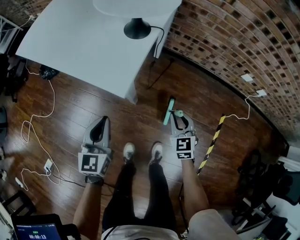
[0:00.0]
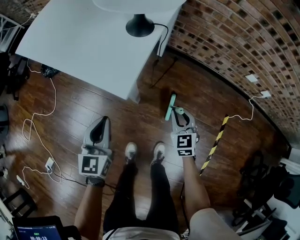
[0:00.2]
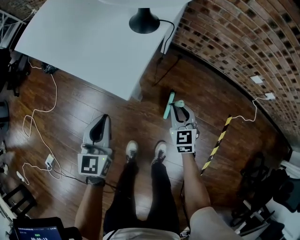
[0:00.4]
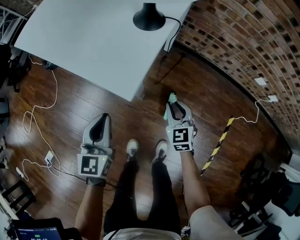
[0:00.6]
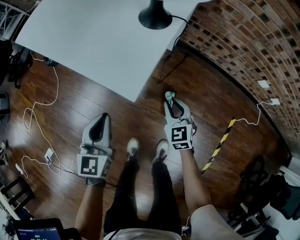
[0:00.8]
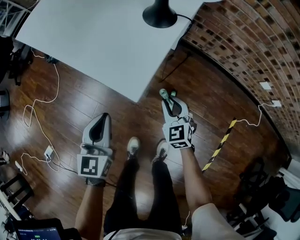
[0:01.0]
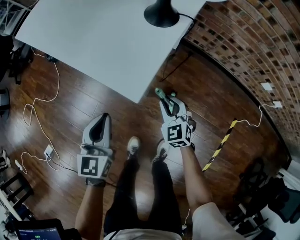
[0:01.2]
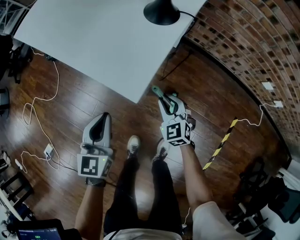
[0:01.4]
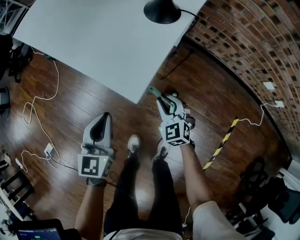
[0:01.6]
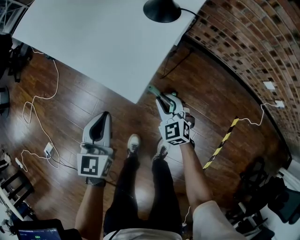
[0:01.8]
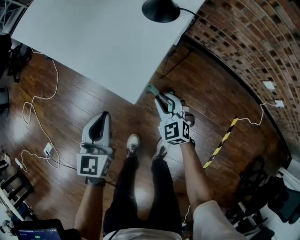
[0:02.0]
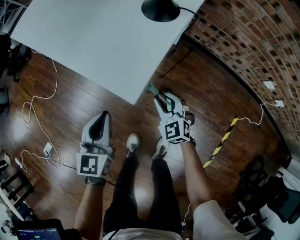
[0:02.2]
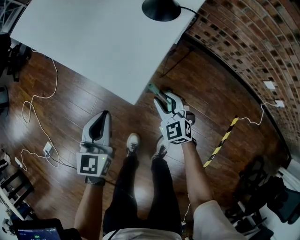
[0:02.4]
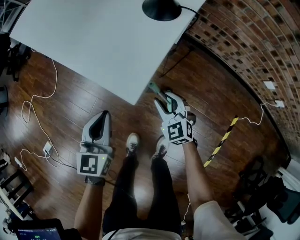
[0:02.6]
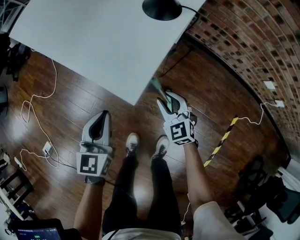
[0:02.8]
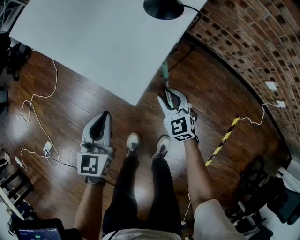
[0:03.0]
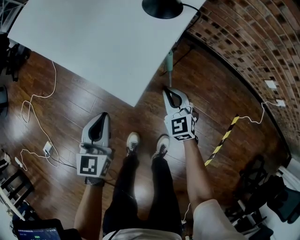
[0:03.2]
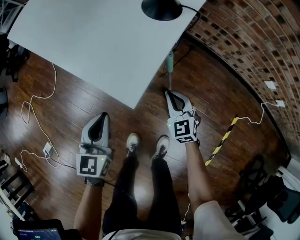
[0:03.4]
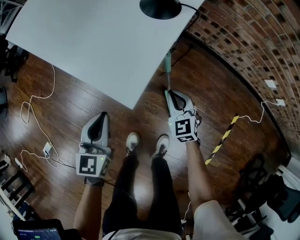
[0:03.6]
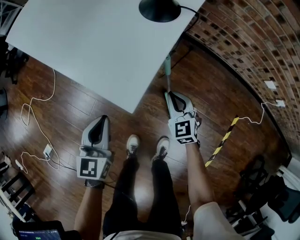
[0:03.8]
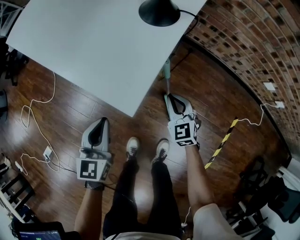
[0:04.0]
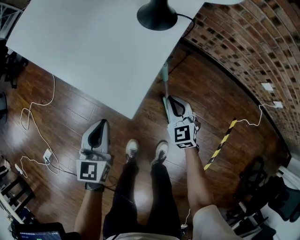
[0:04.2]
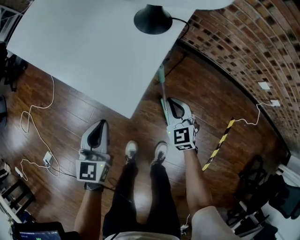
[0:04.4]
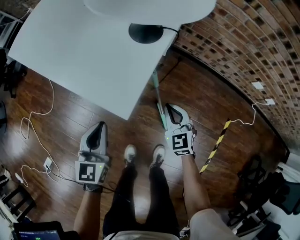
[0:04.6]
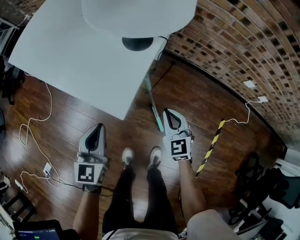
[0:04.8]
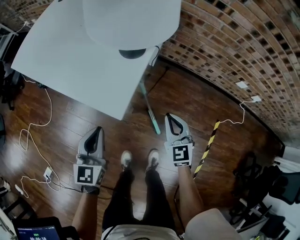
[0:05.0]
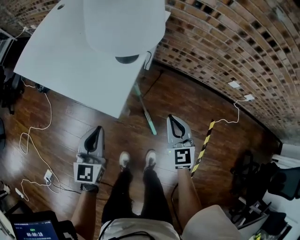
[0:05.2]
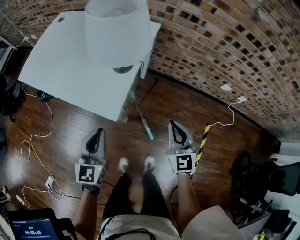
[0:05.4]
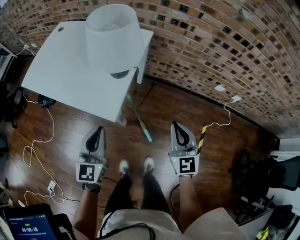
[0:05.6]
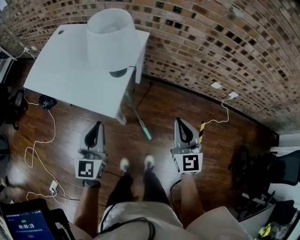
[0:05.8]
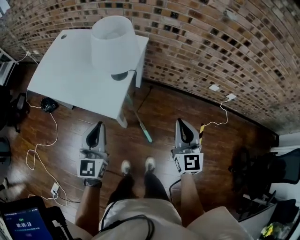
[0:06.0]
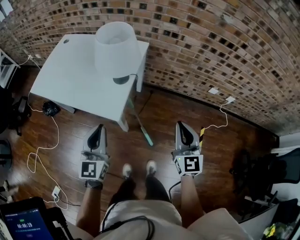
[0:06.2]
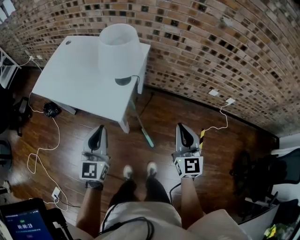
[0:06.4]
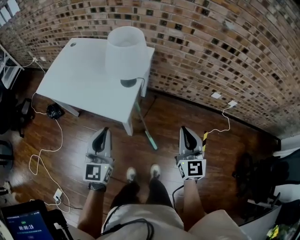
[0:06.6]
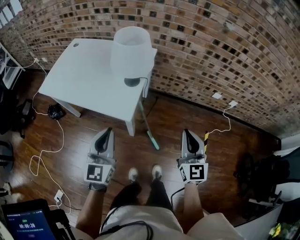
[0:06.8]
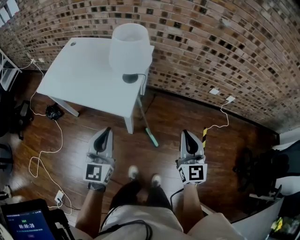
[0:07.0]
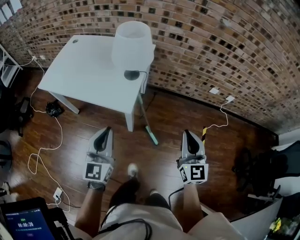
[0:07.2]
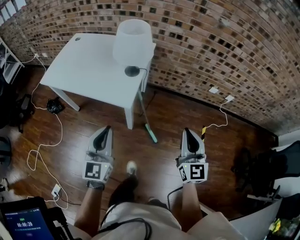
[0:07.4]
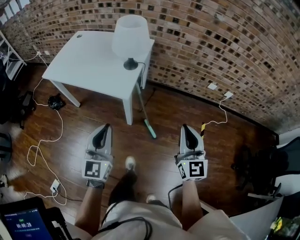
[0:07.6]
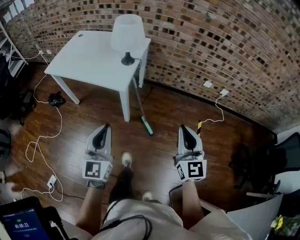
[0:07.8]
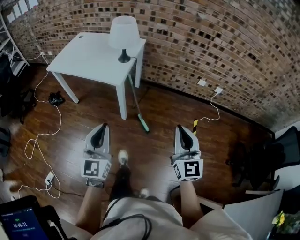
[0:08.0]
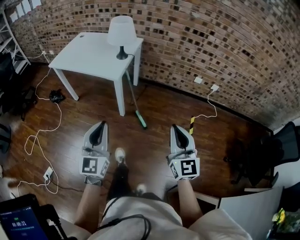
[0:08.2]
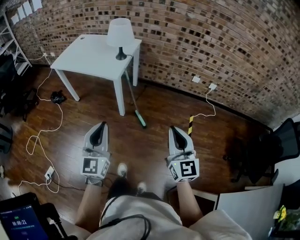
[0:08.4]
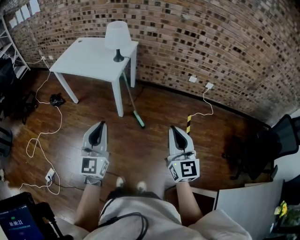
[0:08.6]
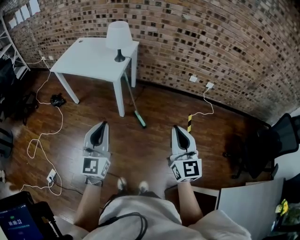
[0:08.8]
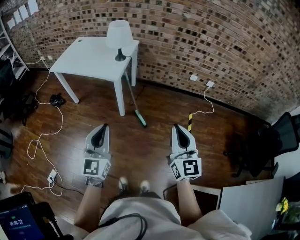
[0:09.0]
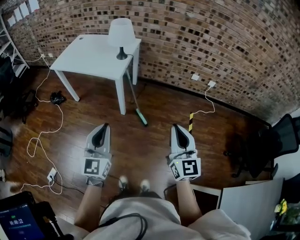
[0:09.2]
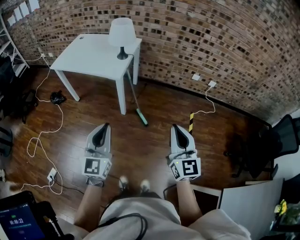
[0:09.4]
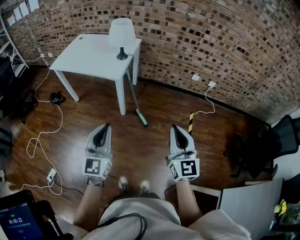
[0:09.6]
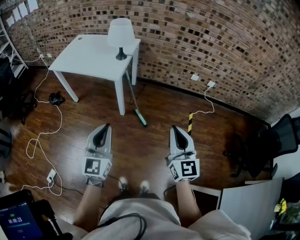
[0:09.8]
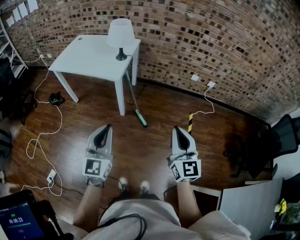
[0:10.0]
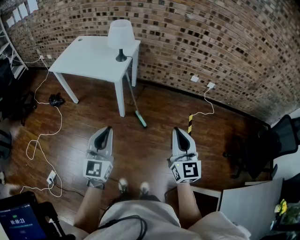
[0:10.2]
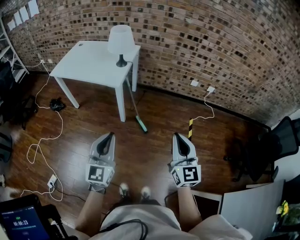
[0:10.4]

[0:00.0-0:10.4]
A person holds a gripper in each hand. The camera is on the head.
0:00.0 to 0:01.4: The left gripper changes place by approximately 5 cm, while the right gripper goes approximately 15 cm to the left, downward and forward, and swivels roughly 20 degrees.
0:01.4 to 0:03.0: The grippers stay close to where they were, moving slightly.
0:03.0 to 0:04.4: The right gripper changes place by some 5 cm, and closes its fingers.
0:04.4 to 0:06.0: The grippers both shift upward by roughly 35 cm. The left gripper swivels about 20 degrees, while the right gripper turns by approximately 30 degrees.
0:06.0 to 0:07.4: Both grippers travel together backward, about 10 cm.
0:07.4 to 0:09.0: Both grippers travel together backward, roughly 30 cm.
0:09.0 to 0:10.4: The grippers stay close to where they were, moving slightly.

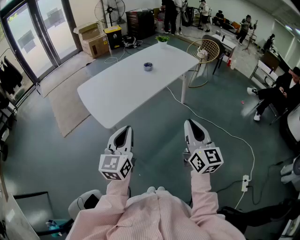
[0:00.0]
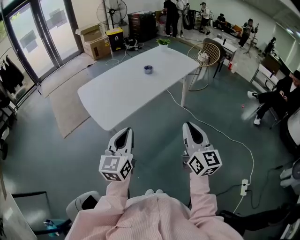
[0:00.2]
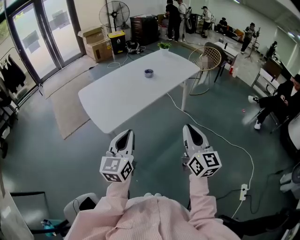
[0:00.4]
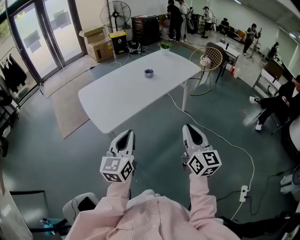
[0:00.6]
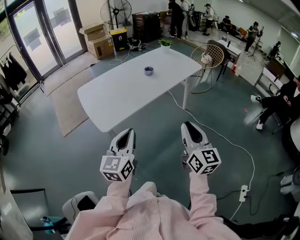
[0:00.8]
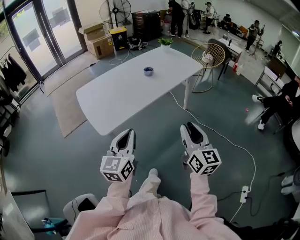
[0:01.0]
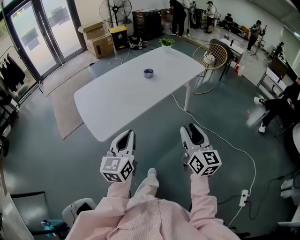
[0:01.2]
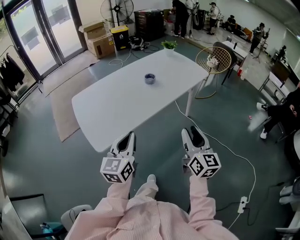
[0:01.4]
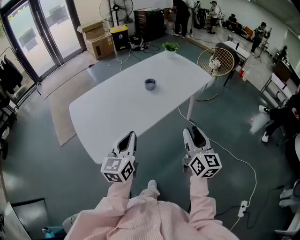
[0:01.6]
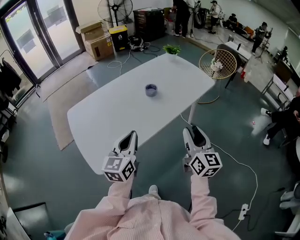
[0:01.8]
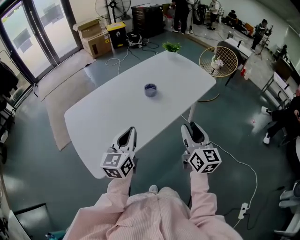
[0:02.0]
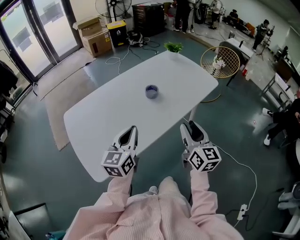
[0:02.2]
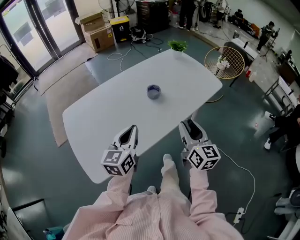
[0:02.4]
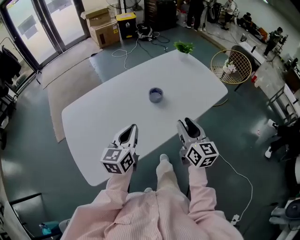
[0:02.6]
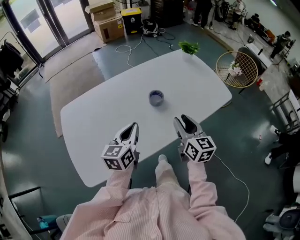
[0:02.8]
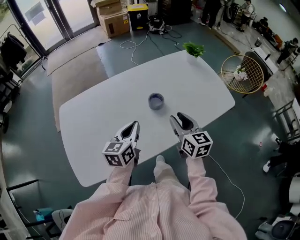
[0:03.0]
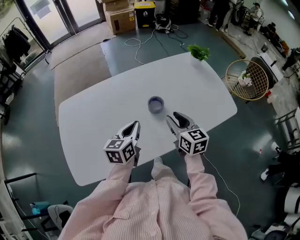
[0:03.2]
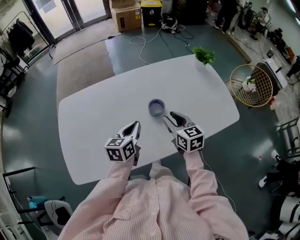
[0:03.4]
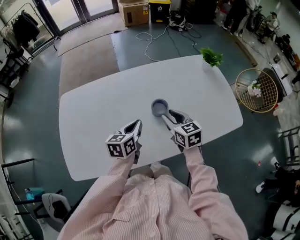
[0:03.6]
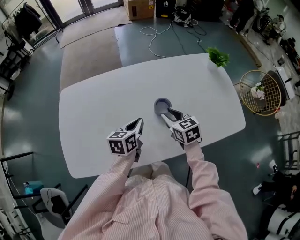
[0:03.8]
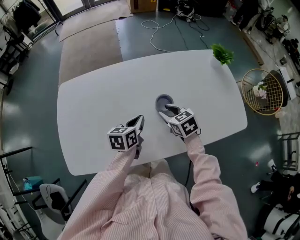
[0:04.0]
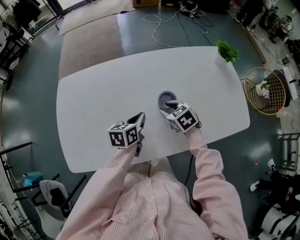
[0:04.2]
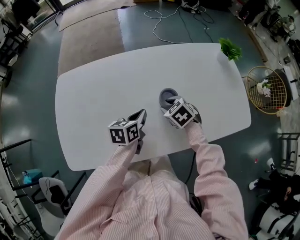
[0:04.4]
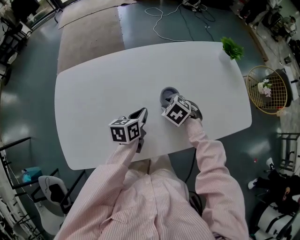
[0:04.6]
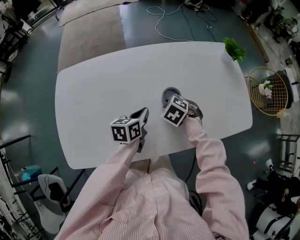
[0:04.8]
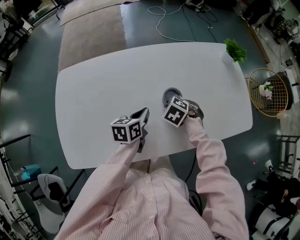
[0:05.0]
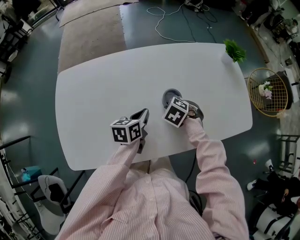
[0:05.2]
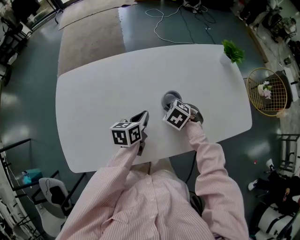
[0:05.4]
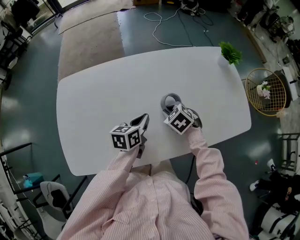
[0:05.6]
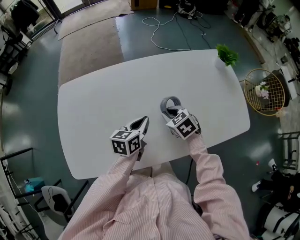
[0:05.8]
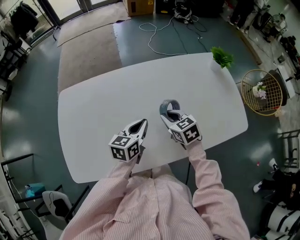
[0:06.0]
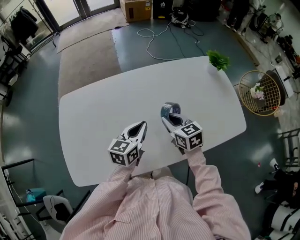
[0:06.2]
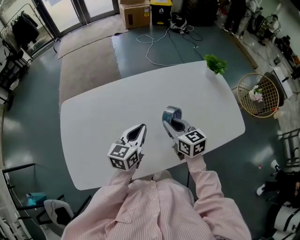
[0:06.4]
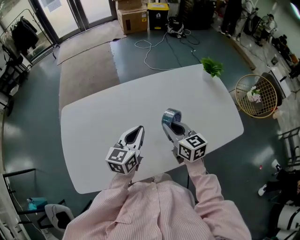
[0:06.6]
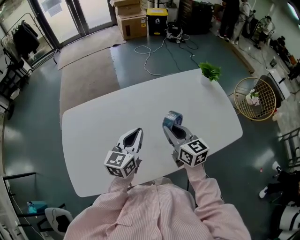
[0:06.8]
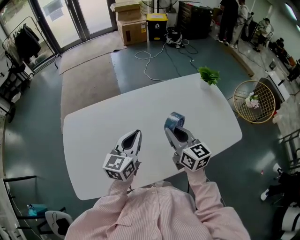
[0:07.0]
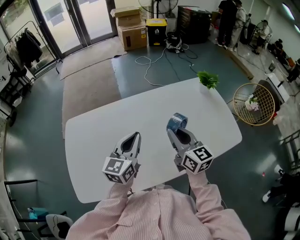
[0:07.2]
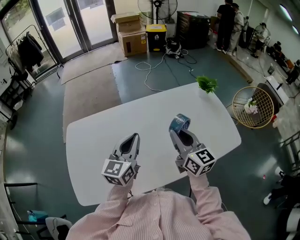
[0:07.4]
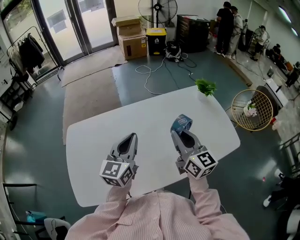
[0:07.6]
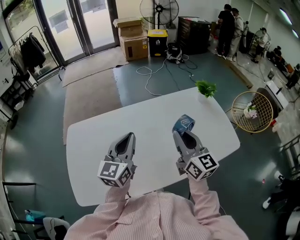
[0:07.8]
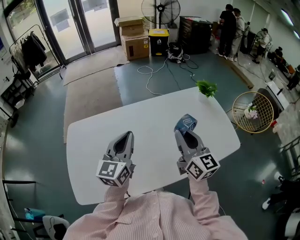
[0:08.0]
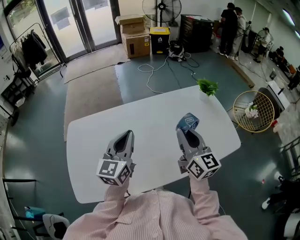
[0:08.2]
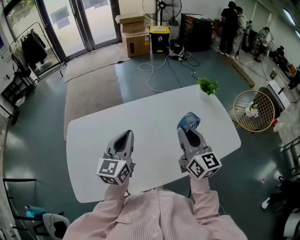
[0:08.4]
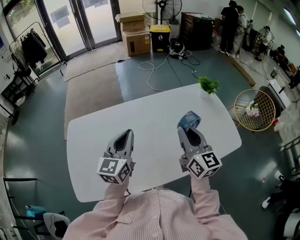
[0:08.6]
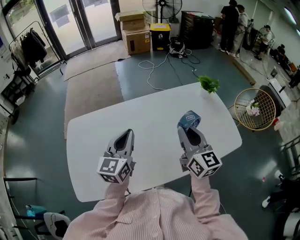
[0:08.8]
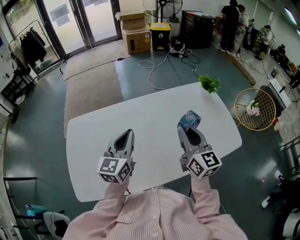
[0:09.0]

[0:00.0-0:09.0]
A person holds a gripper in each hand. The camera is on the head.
0:00.0 to 0:01.6: The grippers both shift forward by roughly 25 cm. The right gripper opens its fingers.
0:01.6 to 0:03.0: The two grippers go approximately 35 cm forward. The right gripper rotates some 30 degrees.
0:03.0 to 0:04.4: The right gripper goes some 20 cm downward, forward and to the left, and tilts its fingers some 50 degrees downward, while the left gripper moves downward and forward, some 15 cm, and swivels about 20 degrees.
0:04.4 to 0:06.0: The two grippers go approximately 5 cm upward. The right gripper changes its angle by about 30 degrees.
0:06.0 to 0:07.6: The grippers both shift upward by roughly 20 cm. The right gripper tips its fingers upward by about 40 degrees. The left gripper turns by about 30 degrees.
0:07.6 to 0:09.0: There are only small adjustments of the grippers.

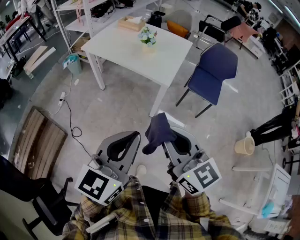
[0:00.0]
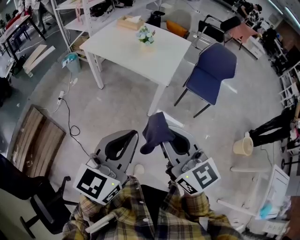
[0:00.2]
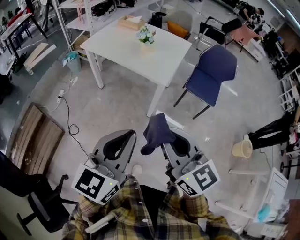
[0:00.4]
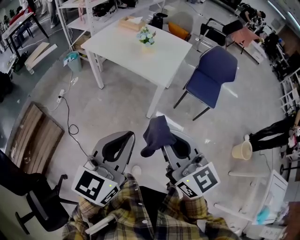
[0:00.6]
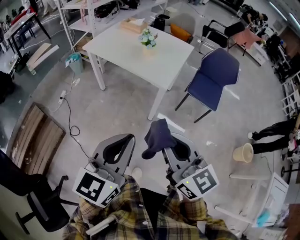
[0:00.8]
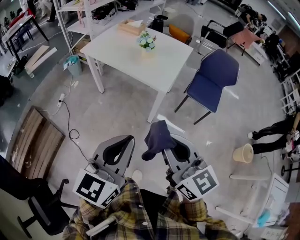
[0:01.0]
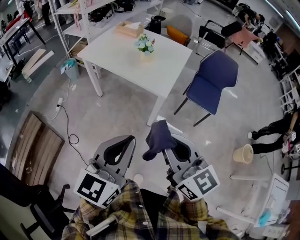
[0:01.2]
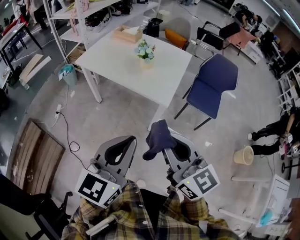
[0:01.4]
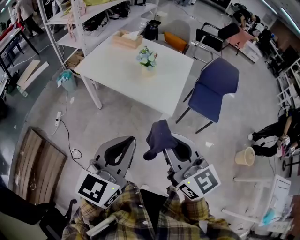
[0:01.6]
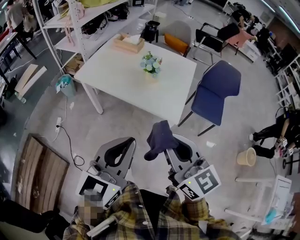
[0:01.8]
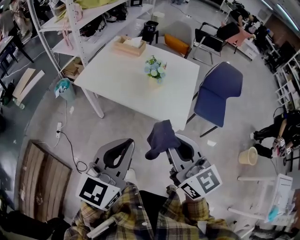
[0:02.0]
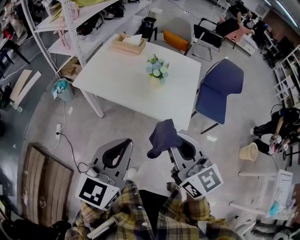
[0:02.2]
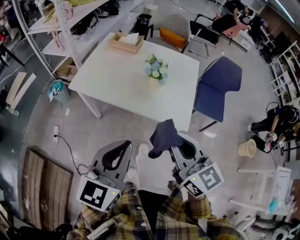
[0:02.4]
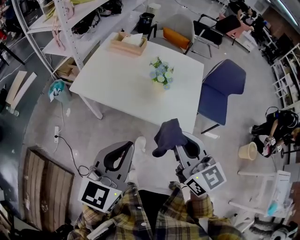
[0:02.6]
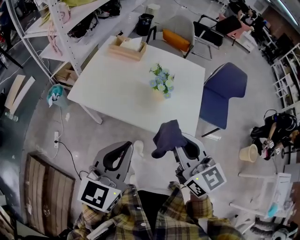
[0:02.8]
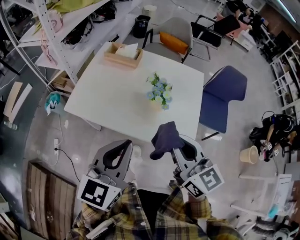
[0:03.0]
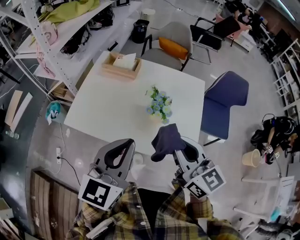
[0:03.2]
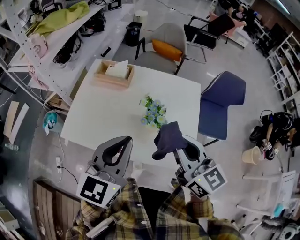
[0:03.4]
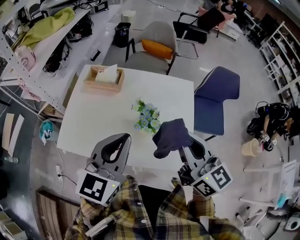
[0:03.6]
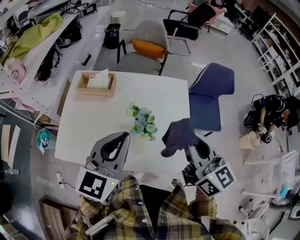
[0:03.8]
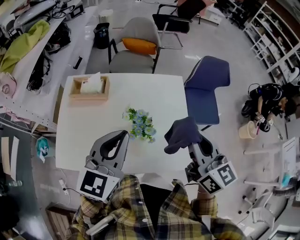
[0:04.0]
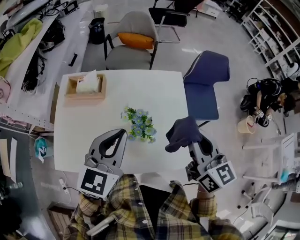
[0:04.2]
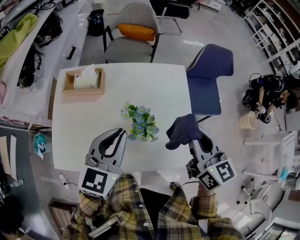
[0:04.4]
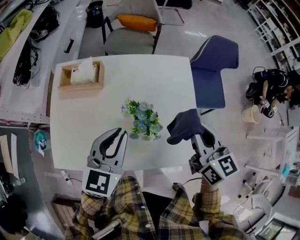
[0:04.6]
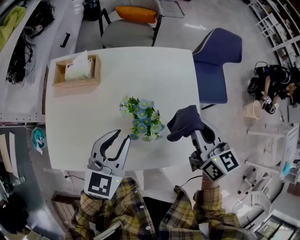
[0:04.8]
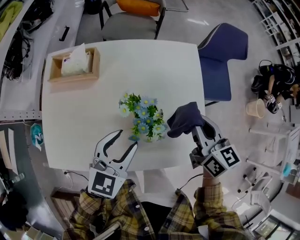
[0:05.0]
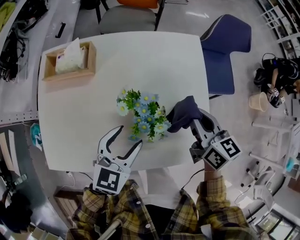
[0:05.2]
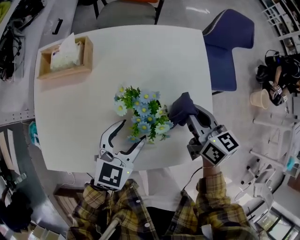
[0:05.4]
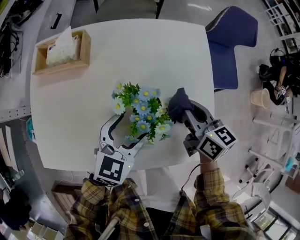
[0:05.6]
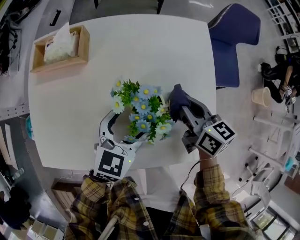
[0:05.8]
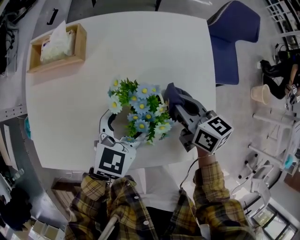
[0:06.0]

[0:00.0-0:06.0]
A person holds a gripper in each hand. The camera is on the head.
0:00.0 to 0:01.6: Both grippers travel together forward, some 15 cm.
0:01.6 to 0:03.0: The right gripper travels forward by about 30 cm. Meanwhile the left gripper goes approximately 30 cm forward and to the left.
0:03.0 to 0:04.4: The left gripper travels forward by roughly 25 cm, and swivels approximately 20 degrees; the right gripper moves forward and to the right, approximately 20 cm, and changes its angle by approximately 30 degrees.
0:04.4 to 0:06.0: Both grippers move downward, about 25 cm. The right gripper changes its angle by about 30 degrees. Meanwhile the left gripper opens its fingers.
